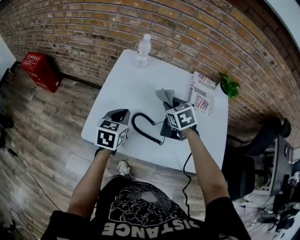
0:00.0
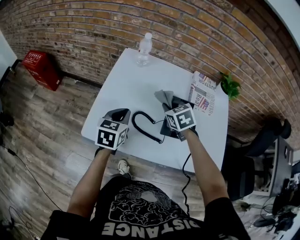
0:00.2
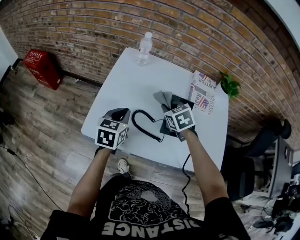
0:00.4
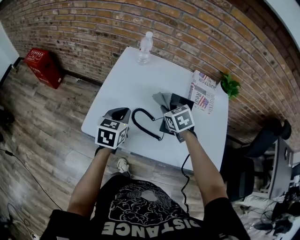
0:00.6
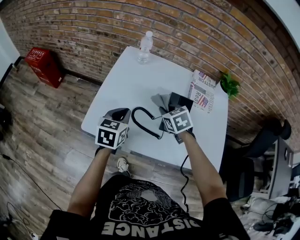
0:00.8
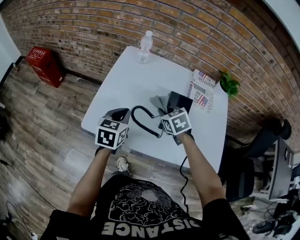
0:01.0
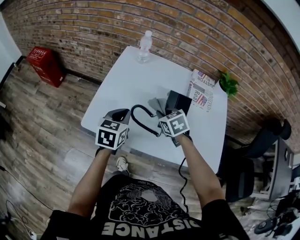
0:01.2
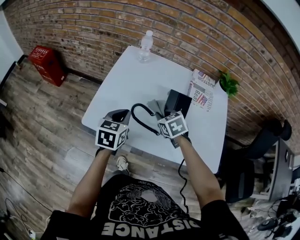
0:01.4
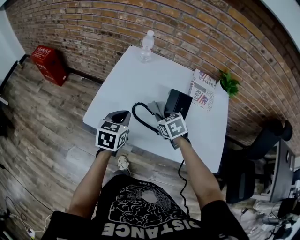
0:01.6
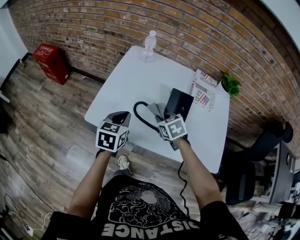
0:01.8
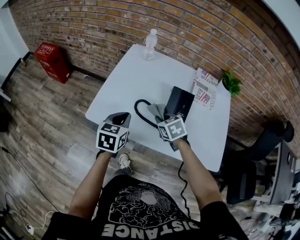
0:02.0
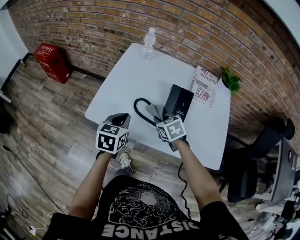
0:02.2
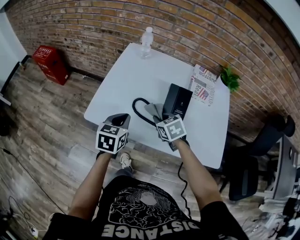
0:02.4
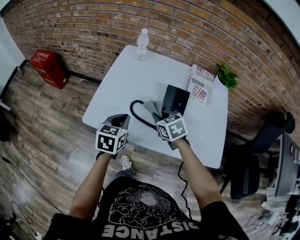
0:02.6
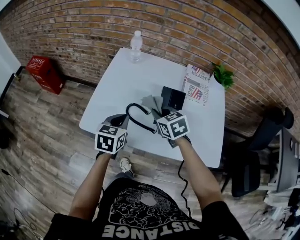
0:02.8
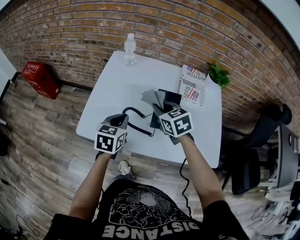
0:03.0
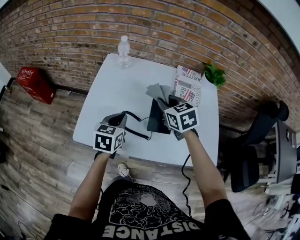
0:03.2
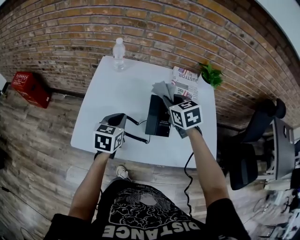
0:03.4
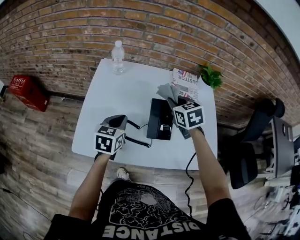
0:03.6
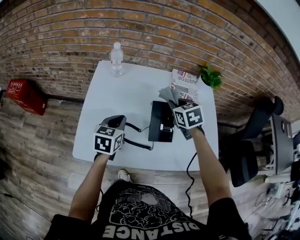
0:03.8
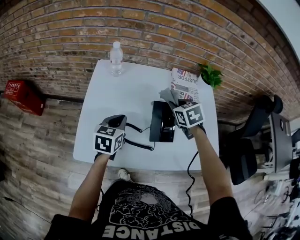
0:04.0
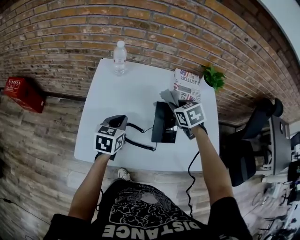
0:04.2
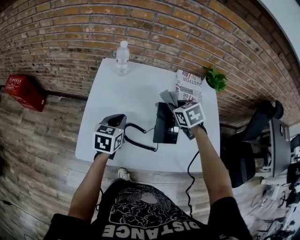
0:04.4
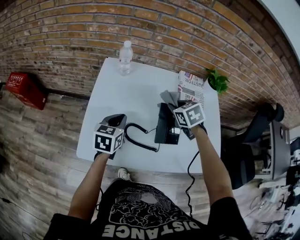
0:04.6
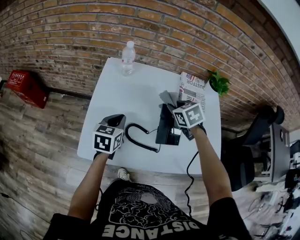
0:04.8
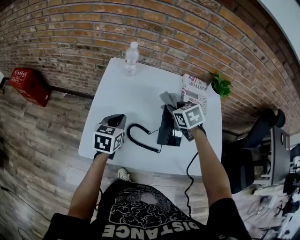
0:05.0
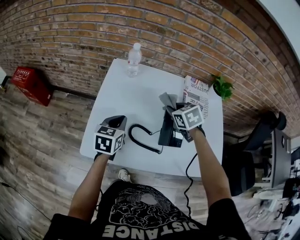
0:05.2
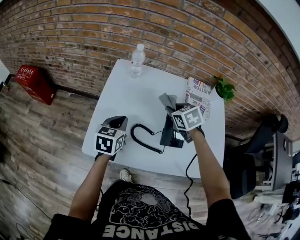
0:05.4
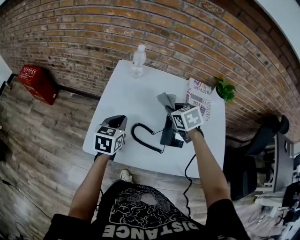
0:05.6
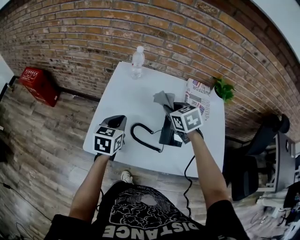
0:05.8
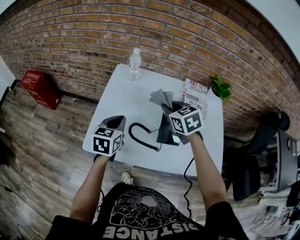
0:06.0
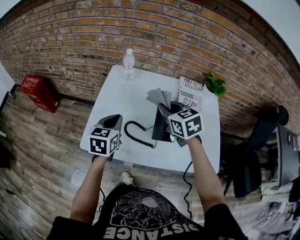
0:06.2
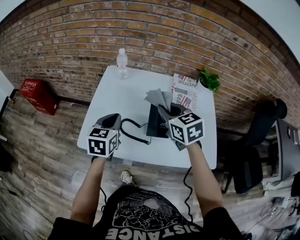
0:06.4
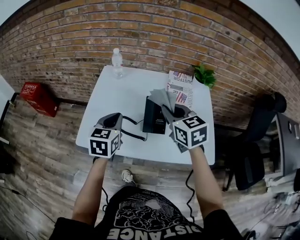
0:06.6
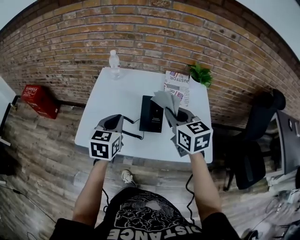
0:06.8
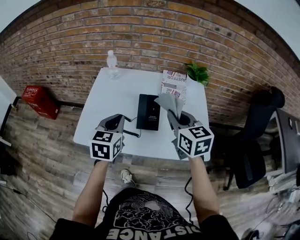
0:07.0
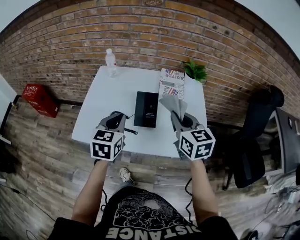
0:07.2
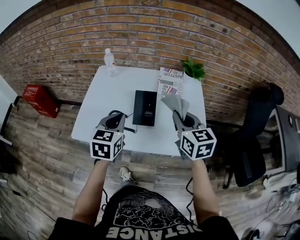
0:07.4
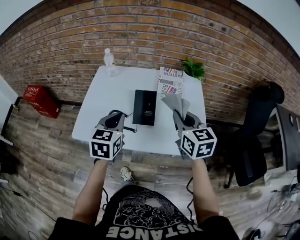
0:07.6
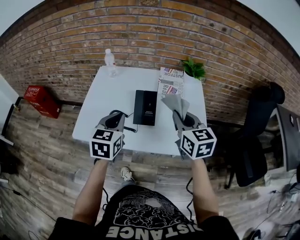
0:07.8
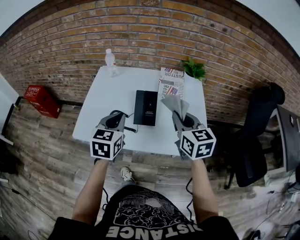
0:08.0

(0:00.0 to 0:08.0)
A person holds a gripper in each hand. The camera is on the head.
0:00.0 - 0:01.6: Both grippers move backward, about 10 cm.
0:01.6 - 0:03.2: The right gripper travels upward, to the right and forward by about 15 cm, while the left gripper moves about 5 cm.
0:03.2 - 0:04.8: The left gripper shifts approximately 10 cm forward and to the left; the right gripper goes about 5 cm forward.
0:04.8 - 0:06.4: The grippers both shift upward and backward by about 15 cm. The right gripper changes its angle by roughly 30 degrees.
0:06.4 - 0:08.0: Both grippers travel together to the right and backward, approximately 15 cm.

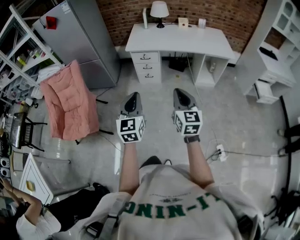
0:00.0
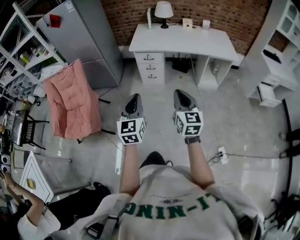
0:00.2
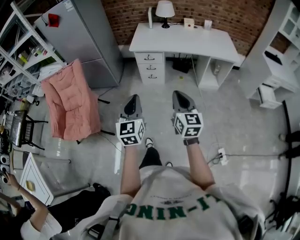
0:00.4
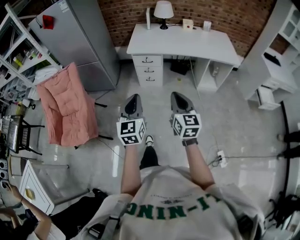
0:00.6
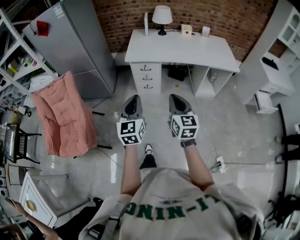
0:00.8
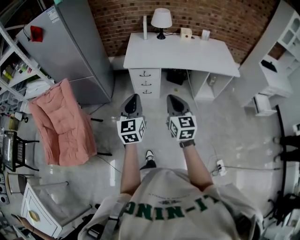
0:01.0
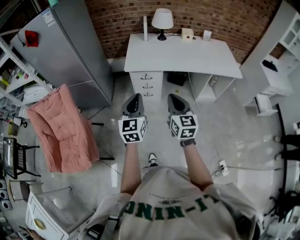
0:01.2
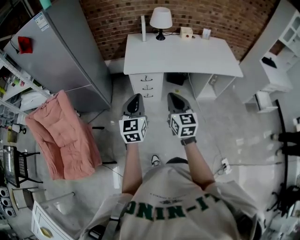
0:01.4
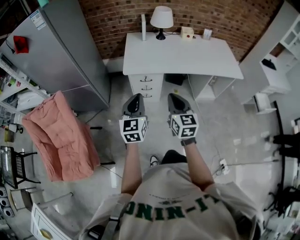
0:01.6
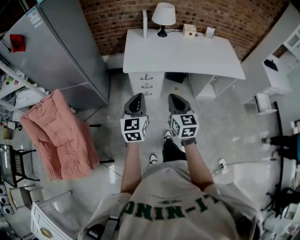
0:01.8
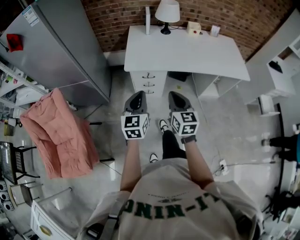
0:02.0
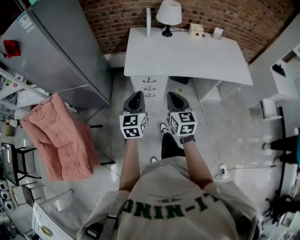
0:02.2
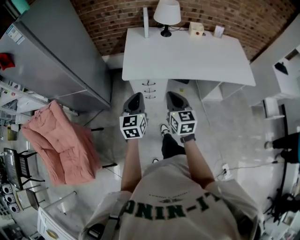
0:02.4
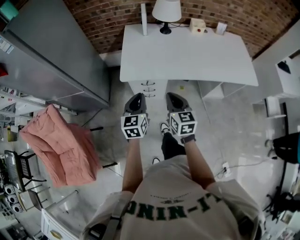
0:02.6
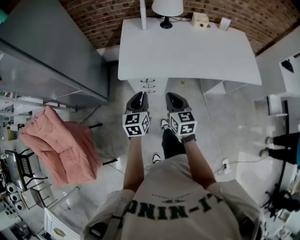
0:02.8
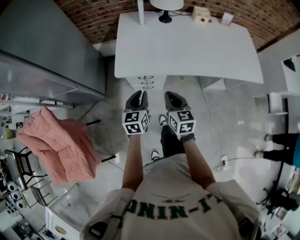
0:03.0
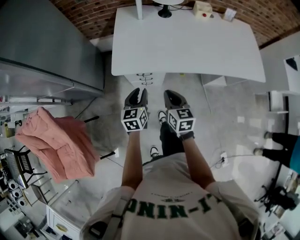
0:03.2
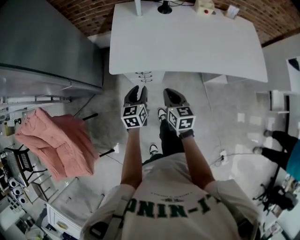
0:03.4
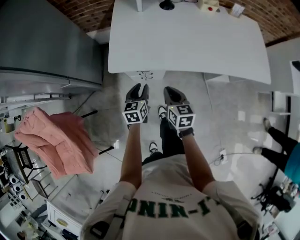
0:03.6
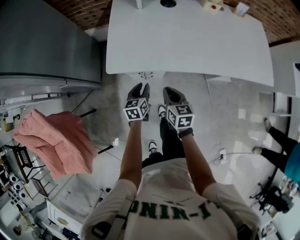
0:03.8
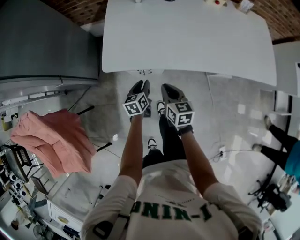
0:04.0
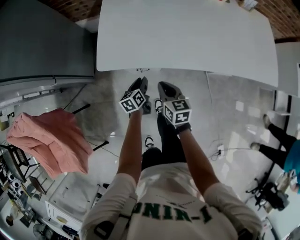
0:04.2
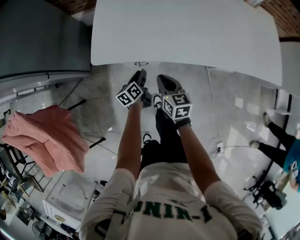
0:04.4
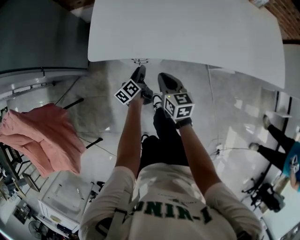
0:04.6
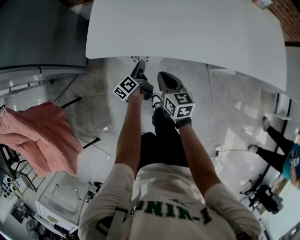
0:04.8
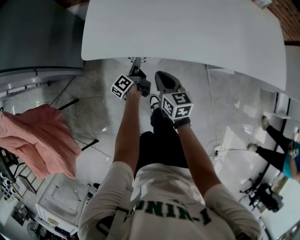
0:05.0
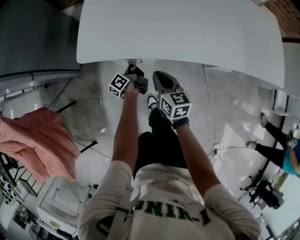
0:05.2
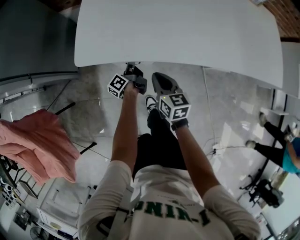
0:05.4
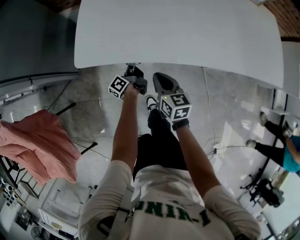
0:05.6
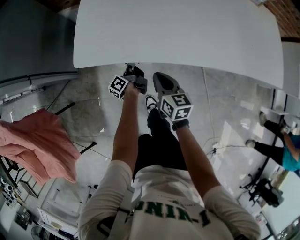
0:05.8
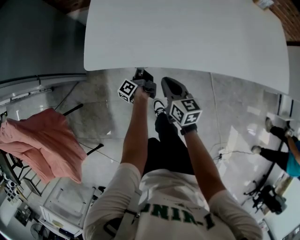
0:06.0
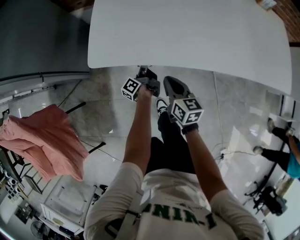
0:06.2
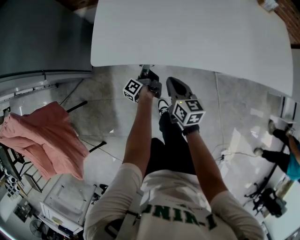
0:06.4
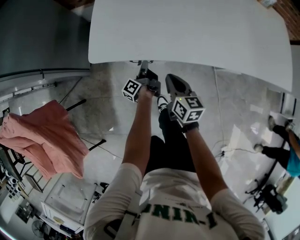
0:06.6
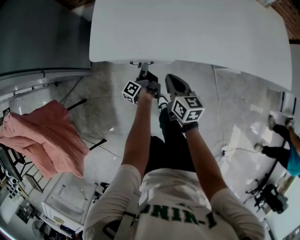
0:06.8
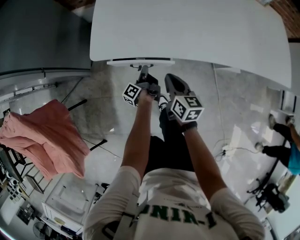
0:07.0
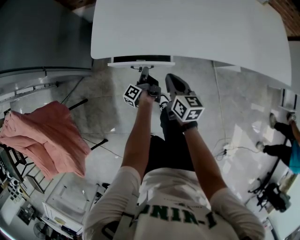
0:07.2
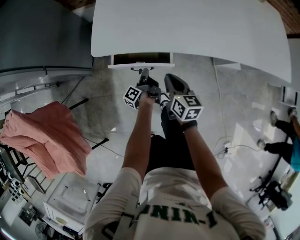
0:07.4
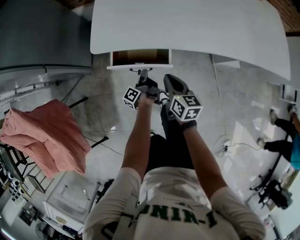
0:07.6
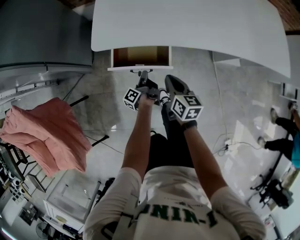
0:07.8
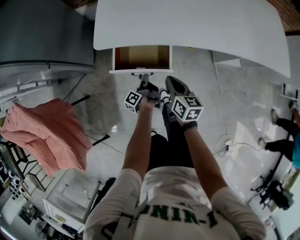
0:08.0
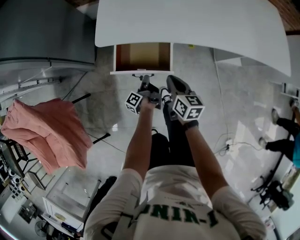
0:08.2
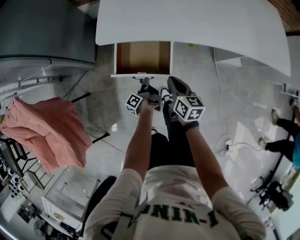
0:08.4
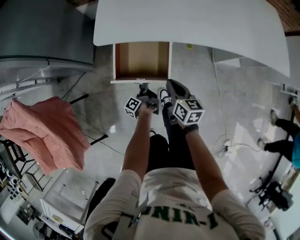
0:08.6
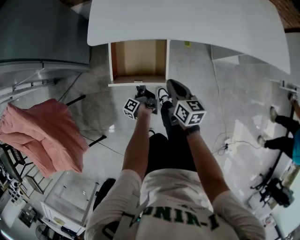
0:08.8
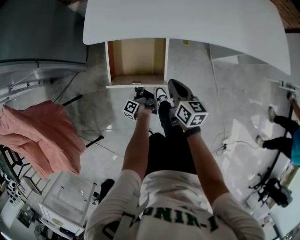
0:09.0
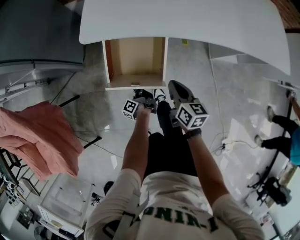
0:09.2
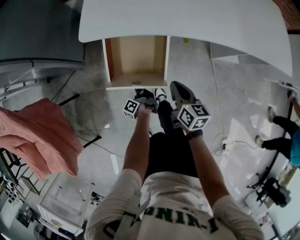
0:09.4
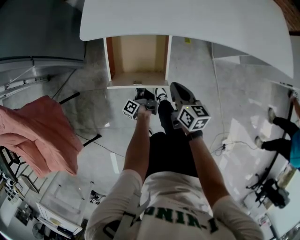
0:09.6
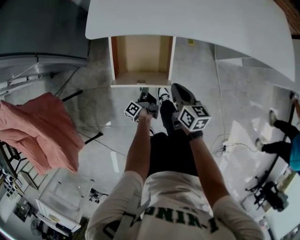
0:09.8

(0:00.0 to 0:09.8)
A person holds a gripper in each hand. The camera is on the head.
0:00.0 - 0:01.4: The left gripper goes approximately 35 cm forward. The right gripper shifts some 35 cm forward and to the left.
0:01.4 - 0:02.8: Both grippers move forward and downward, approximately 30 cm.
0:02.8 - 0:04.2: The left gripper moves downward, approximately 30 cm, and changes its angle by approximately 40 degrees. The right gripper heads downward and forward, covering some 20 cm.
0:04.2 - 0:05.6: The left gripper travels forward and downward by roughly 15 cm, and swivels about 50 degrees; the right gripper shifts about 10 cm downward.
0:05.6 - 0:07.0: The left gripper moves backward, approximately 5 cm.
0:07.0 - 0:08.4: The left gripper heads backward, covering roughly 15 cm, while the right gripper goes about 10 cm backward.
0:08.4 - 0:09.8: The right gripper shifts by some 5 cm, while the left gripper goes roughly 5 cm downward, and opens its fingers.

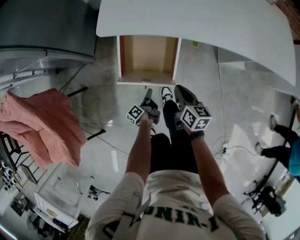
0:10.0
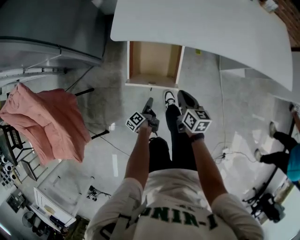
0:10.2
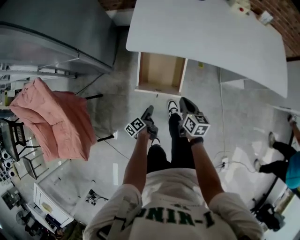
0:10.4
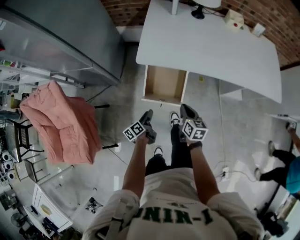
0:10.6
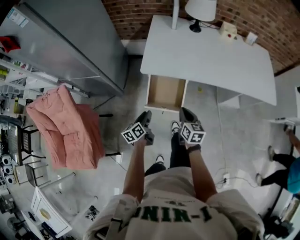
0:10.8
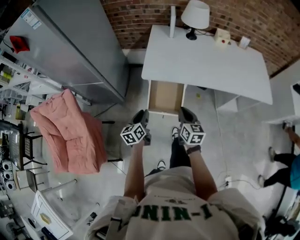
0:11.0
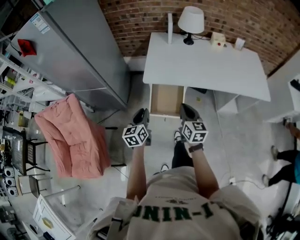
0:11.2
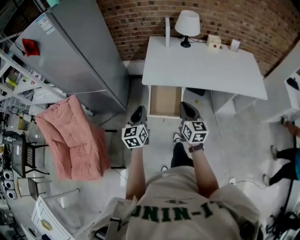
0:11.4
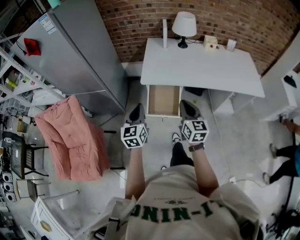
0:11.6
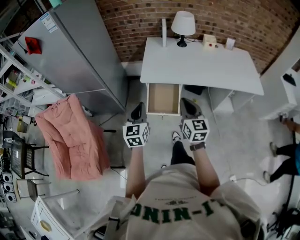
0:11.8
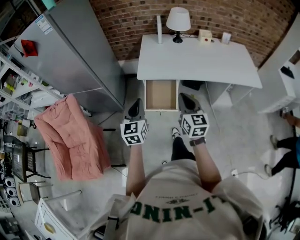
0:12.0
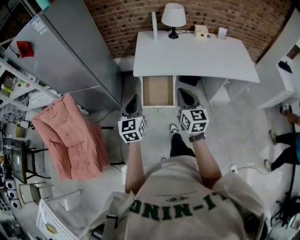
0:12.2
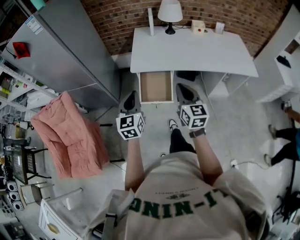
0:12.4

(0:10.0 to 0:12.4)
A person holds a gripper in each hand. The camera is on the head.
0:10.0 - 0:11.2: The two grippers go about 40 cm upward. The left gripper rotates around the line of its fingers by about 70 degrees, clockwise from behind, and closes up, while the right gripper rotates roughly 30 degrees.
0:11.2 - 0:12.4: The grippers both shift upward and backward by roughly 15 cm. The left gripper rotates about 20 degrees.

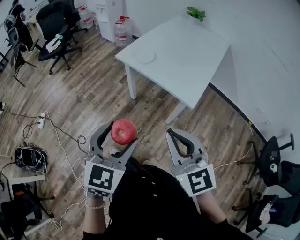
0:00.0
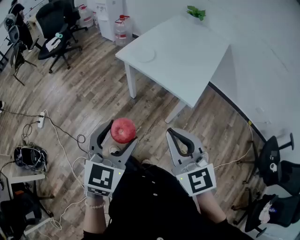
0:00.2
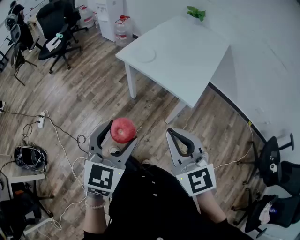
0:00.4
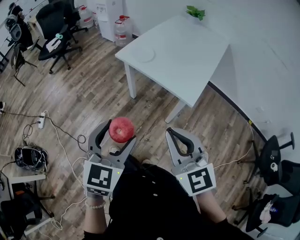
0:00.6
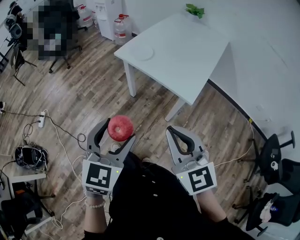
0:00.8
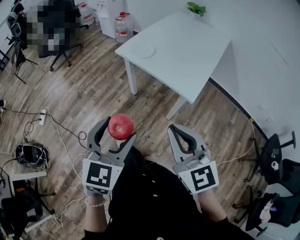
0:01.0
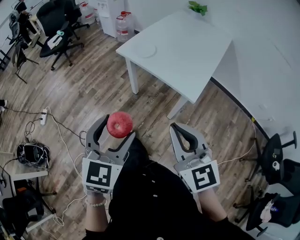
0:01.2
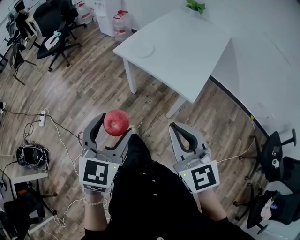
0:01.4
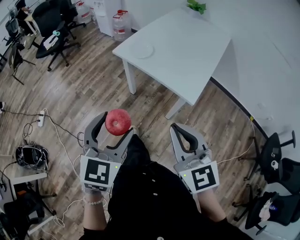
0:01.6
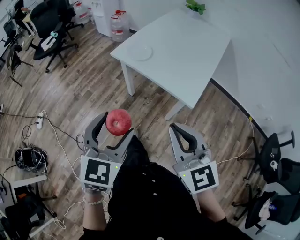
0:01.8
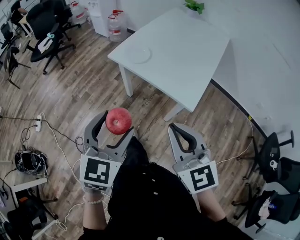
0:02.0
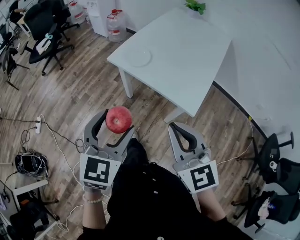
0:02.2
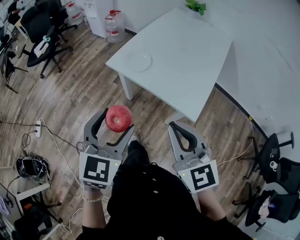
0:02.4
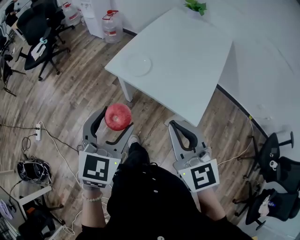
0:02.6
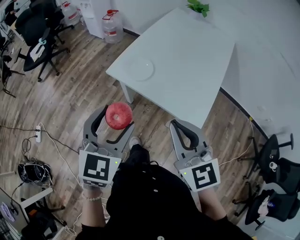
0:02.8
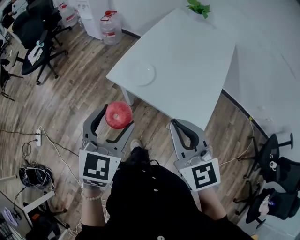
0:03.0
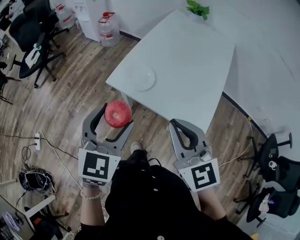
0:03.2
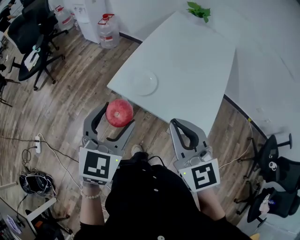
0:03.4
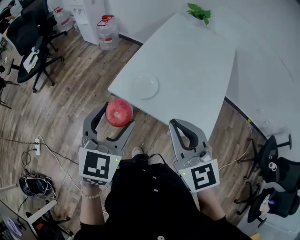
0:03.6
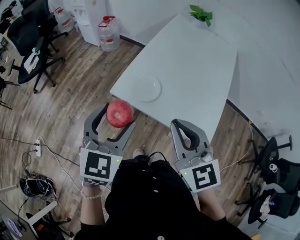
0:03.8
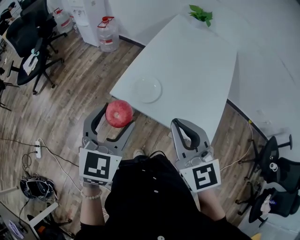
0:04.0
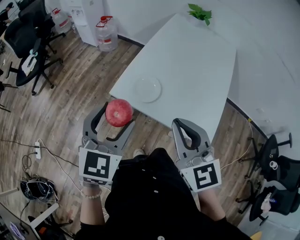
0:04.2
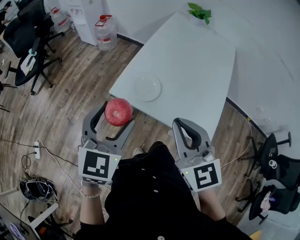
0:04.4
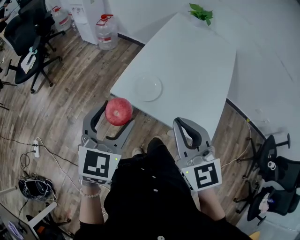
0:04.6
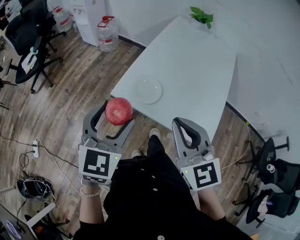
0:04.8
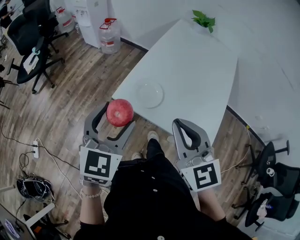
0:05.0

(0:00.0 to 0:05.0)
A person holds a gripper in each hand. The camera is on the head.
0:00.0 - 0:01.6: The grippers make only small movements.
0:01.6 - 0:03.4: The grippers both shift forward by about 30 cm.
0:03.4 - 0:05.0: Both grippers move forward, about 5 cm.
